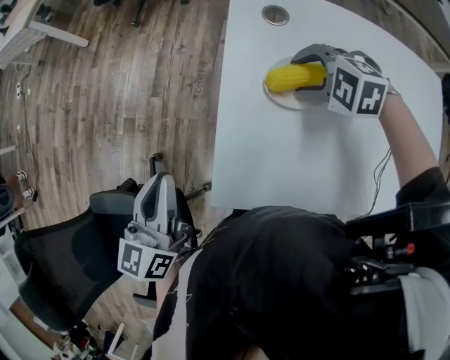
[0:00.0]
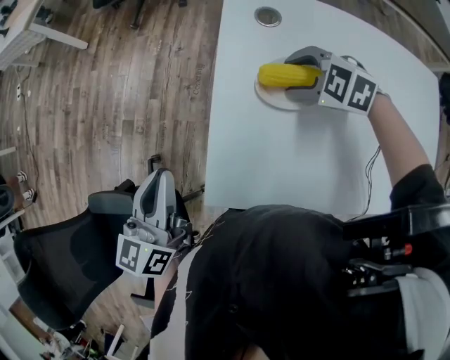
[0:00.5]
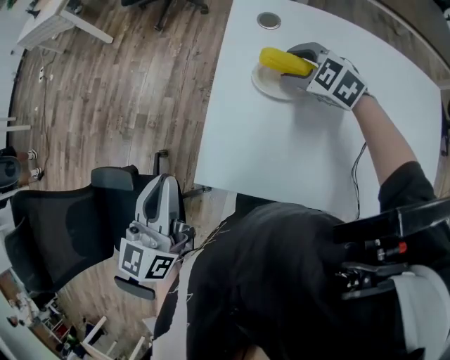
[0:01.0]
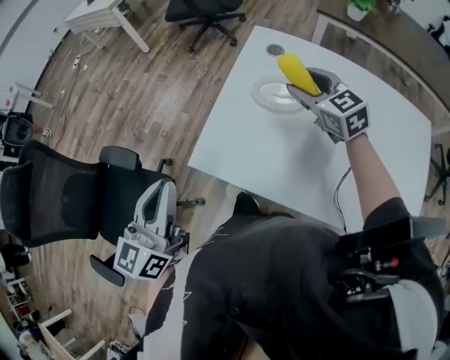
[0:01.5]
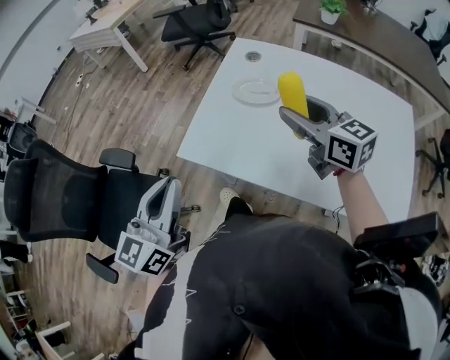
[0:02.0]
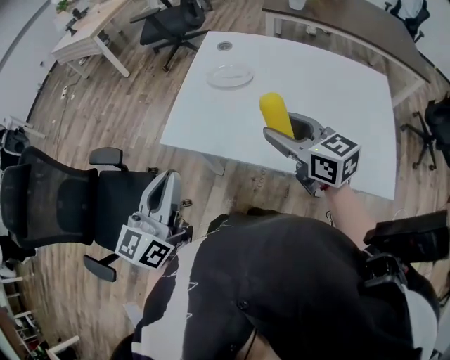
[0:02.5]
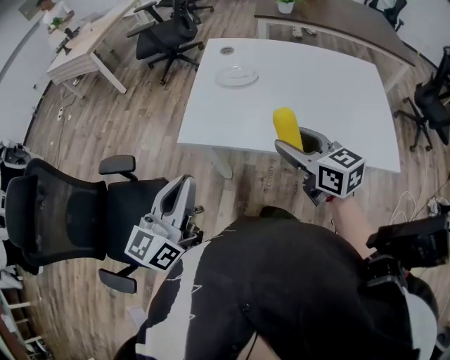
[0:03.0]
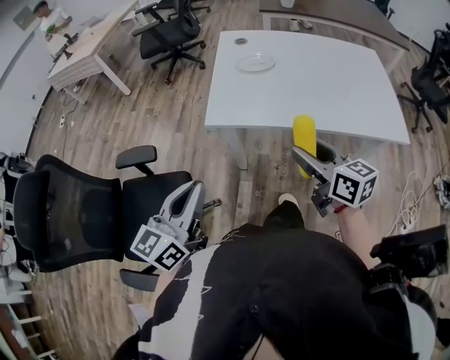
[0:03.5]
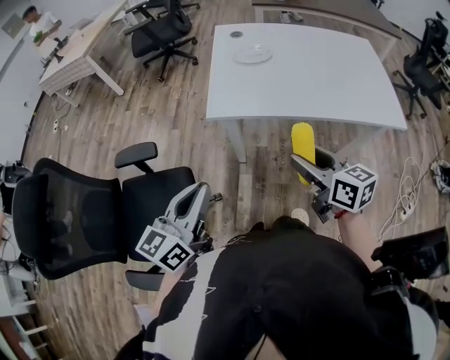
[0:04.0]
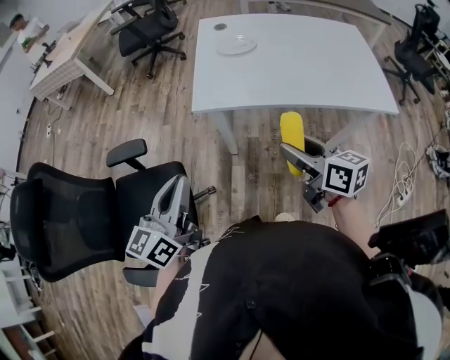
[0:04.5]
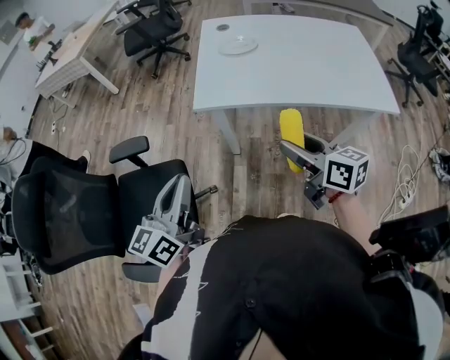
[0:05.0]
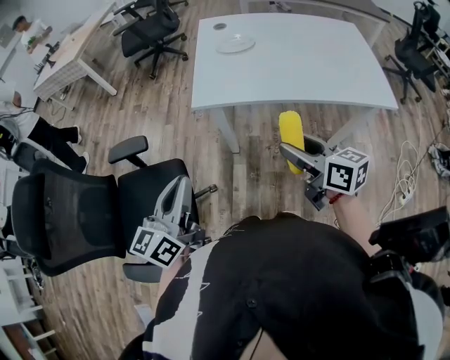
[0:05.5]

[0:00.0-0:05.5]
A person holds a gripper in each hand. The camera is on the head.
0:00.0 to 0:02.0: Both grippers move backward and upward, about 30 cm. The right gripper angles its fingers upward, by roughly 50 degrees; the left gripper swivels roughly 20 degrees.
0:02.0 to 0:03.5: The right gripper travels backward and to the left by approximately 30 cm, and rotates roughly 30 degrees; the left gripper shifts approximately 20 cm backward and to the left, and changes its angle by about 20 degrees.
0:03.5 to 0:05.5: The right gripper moves backward, approximately 5 cm. The left gripper ends up about 5 cm from where it was.

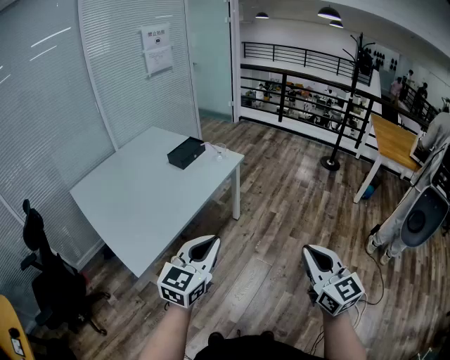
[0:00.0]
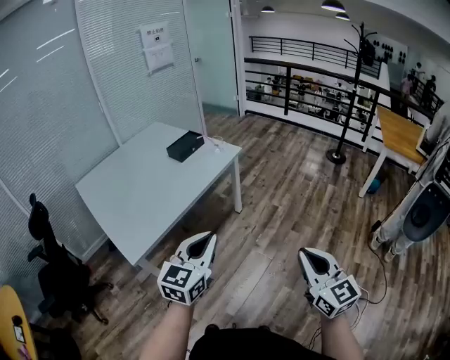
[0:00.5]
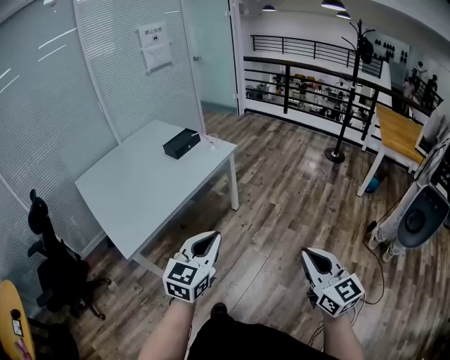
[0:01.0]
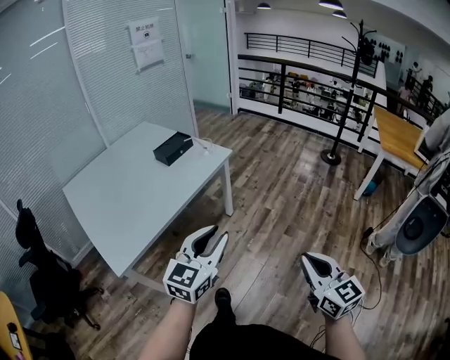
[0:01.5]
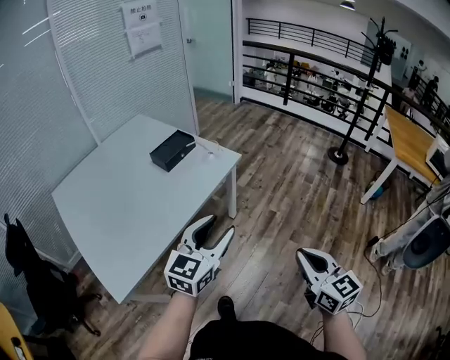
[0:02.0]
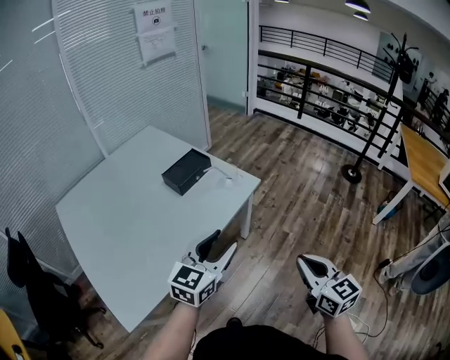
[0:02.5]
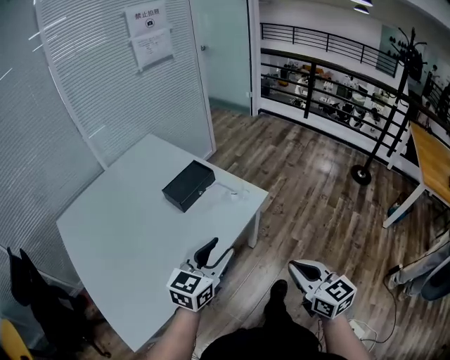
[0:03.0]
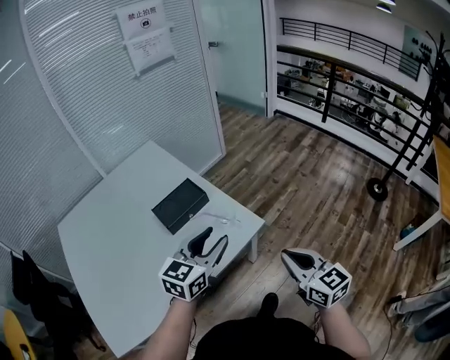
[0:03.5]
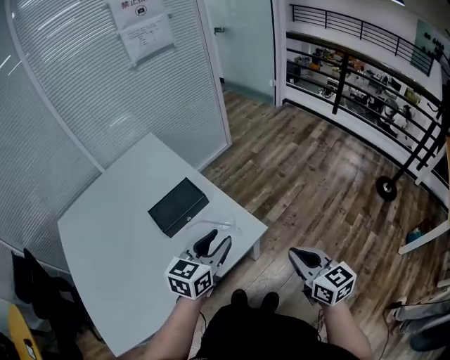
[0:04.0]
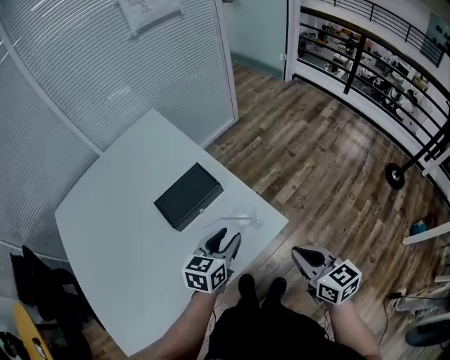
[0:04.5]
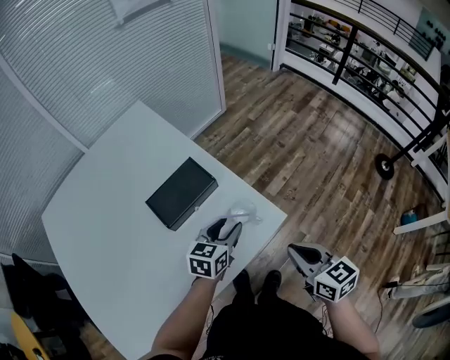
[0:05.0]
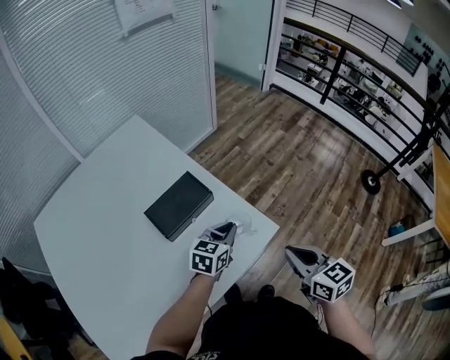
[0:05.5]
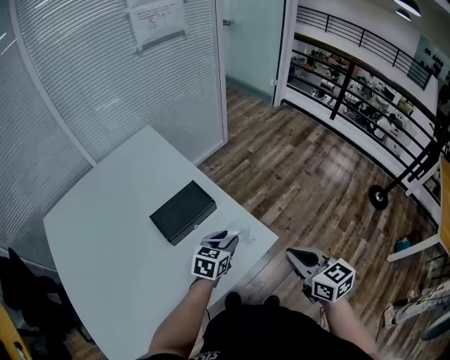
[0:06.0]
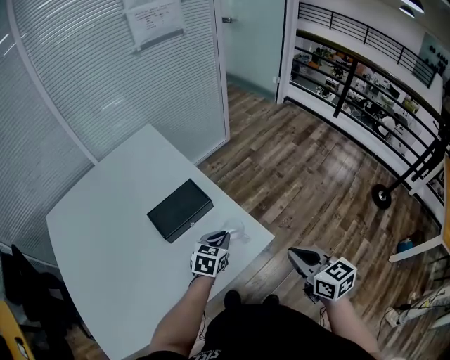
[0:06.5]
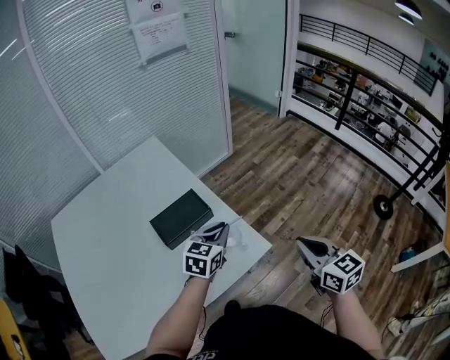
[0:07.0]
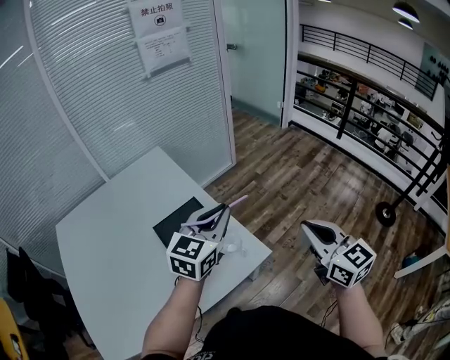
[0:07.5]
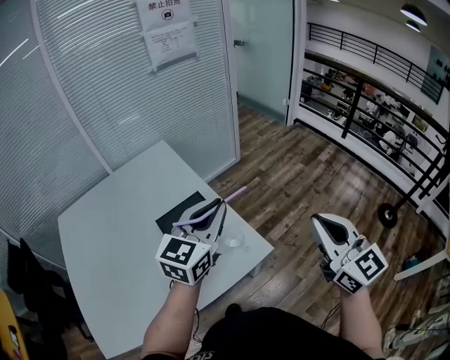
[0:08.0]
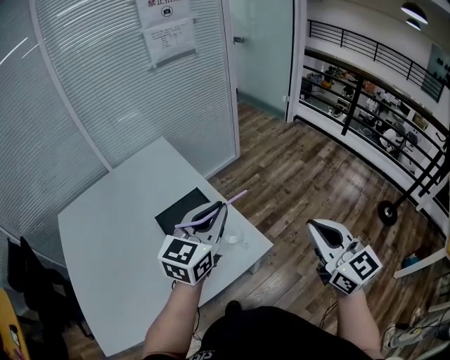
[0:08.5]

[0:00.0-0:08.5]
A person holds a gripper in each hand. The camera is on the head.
0:00.0 to 0:02.0: Both grippers travel together forward, about 25 cm. The left gripper opens.
0:02.0 to 0:04.0: The pair of grippers is taken forward, approximately 50 cm. The left gripper rotates approximately 20 degrees, while the right gripper changes its angle by roughly 20 degrees.
0:04.0 to 0:06.5: The left gripper moves downward and forward, approximately 20 cm, and closes. The right gripper moves forward, some 5 cm.
0:06.5 to 0:08.5: The right gripper heads upward, covering roughly 15 cm, and turns by roughly 30 degrees, while the left gripper goes roughly 30 cm upward, and points its fingers roughly 30 degrees further upward.

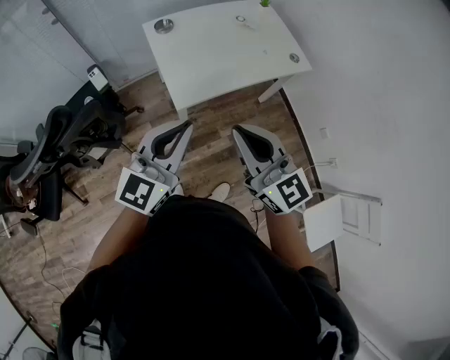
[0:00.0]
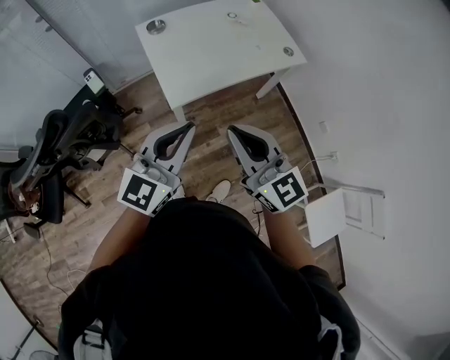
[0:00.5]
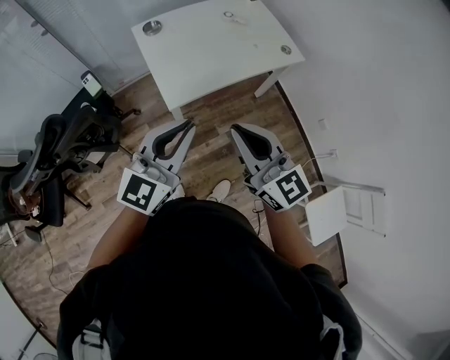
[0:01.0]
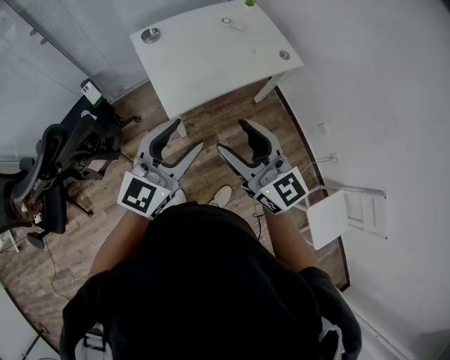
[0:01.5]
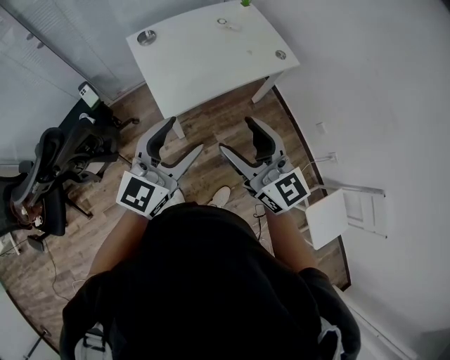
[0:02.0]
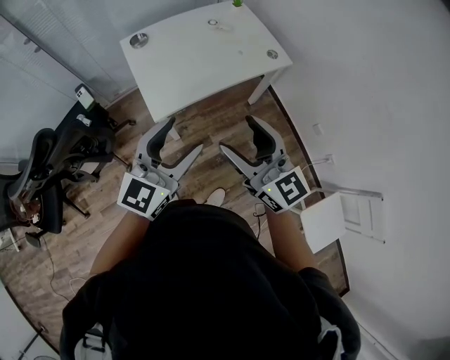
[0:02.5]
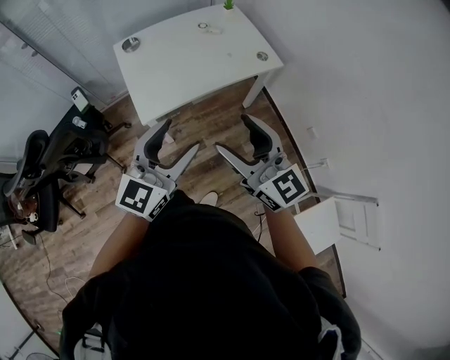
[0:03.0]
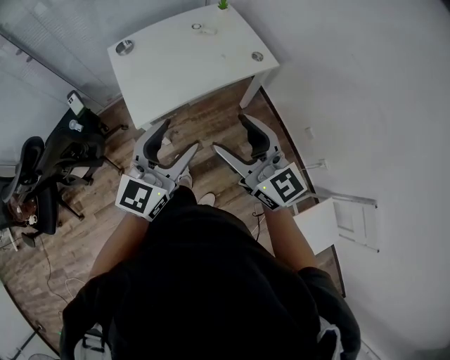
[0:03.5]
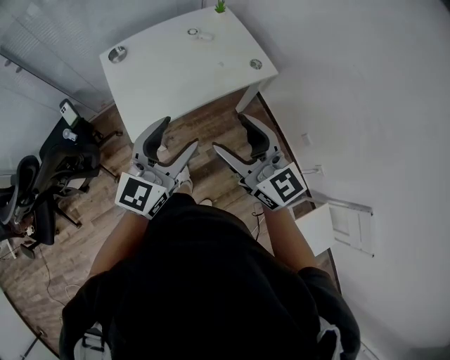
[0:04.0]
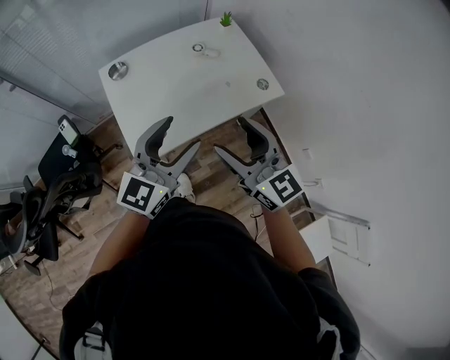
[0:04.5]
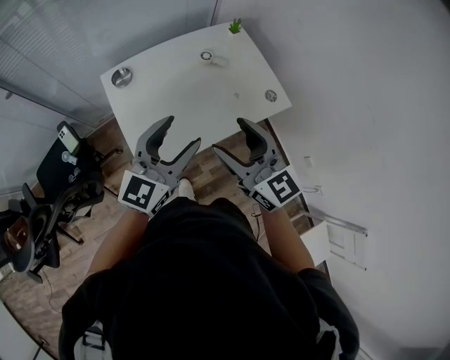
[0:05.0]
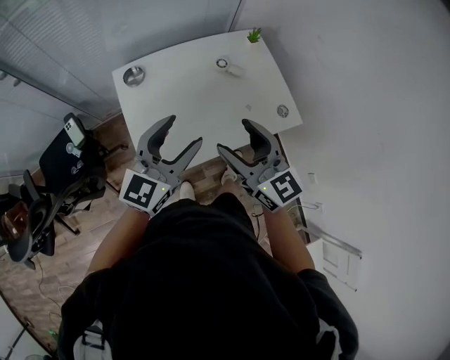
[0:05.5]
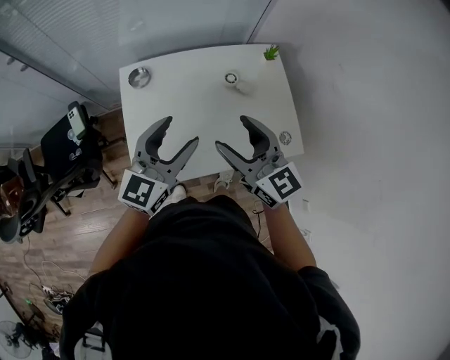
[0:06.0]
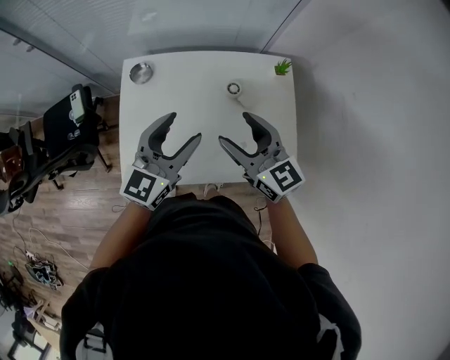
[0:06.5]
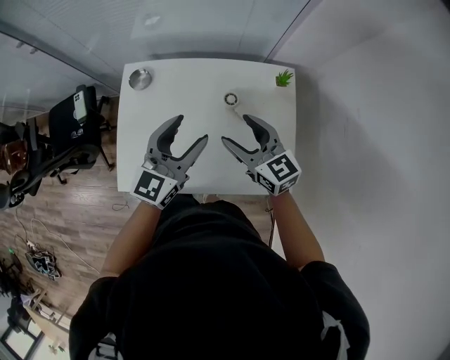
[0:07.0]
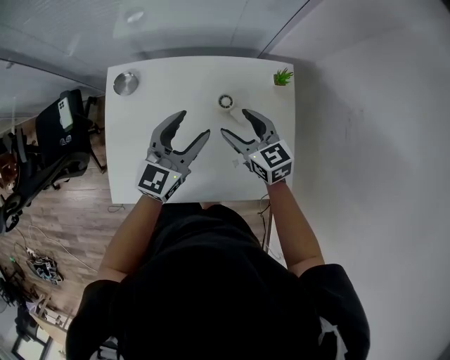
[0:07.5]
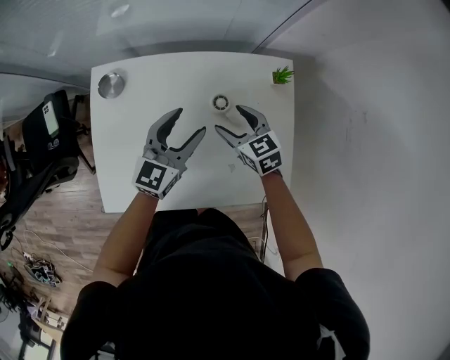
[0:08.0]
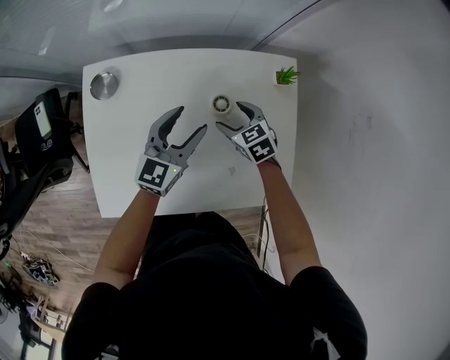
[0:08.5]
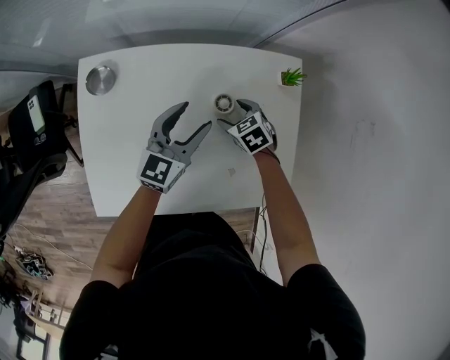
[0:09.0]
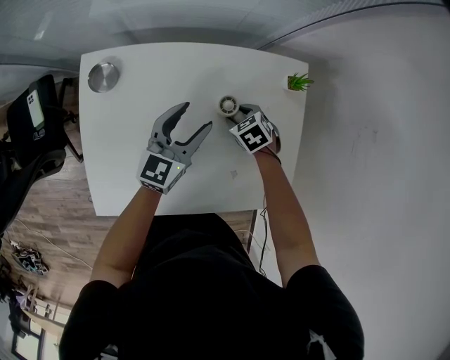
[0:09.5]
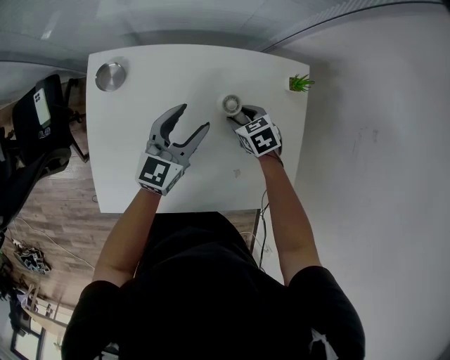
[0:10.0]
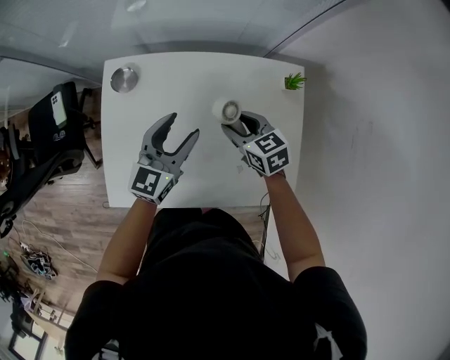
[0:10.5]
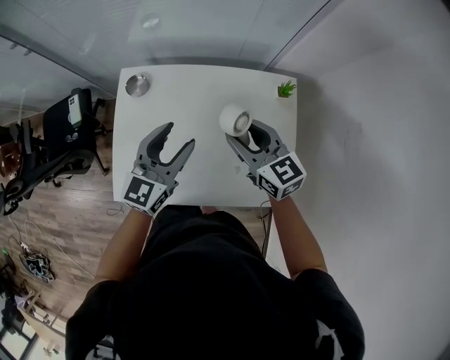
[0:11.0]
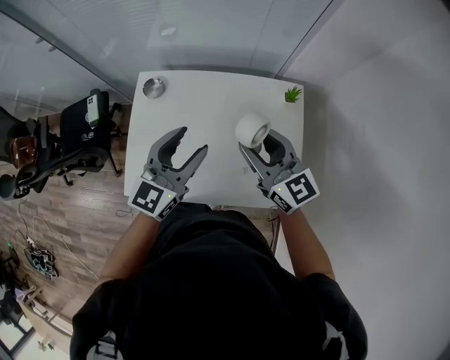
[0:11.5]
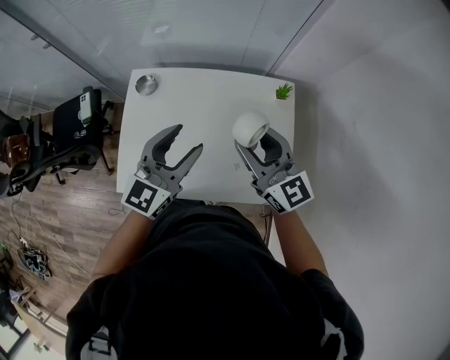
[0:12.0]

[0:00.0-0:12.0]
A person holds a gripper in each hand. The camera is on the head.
0:00.0 to 0:02.0: Both grippers travel together to the right, approximately 5 cm. The right gripper opens. The left gripper opens.
0:02.0 to 0:04.0: The two grippers go roughly 15 cm to the right and forward.
0:04.0 to 0:06.0: The two grippers go approximately 30 cm forward.
0:06.0 to 0:08.0: The left gripper travels forward, downward and to the right by roughly 30 cm. Meanwhile the right gripper travels downward, forward and to the right by approximately 35 cm, and tips its fingers downward by roughly 30 degrees.
0:08.0 to 0:10.0: The left gripper heads downward, covering roughly 5 cm, while the right gripper travels downward by roughly 10 cm, turns by roughly 30 degrees, and closes its fingers.
0:10.0 to 0:12.0: The left gripper shifts about 25 cm upward and backward. The right gripper goes approximately 40 cm upward, and tips its fingers upward by some 60 degrees.
